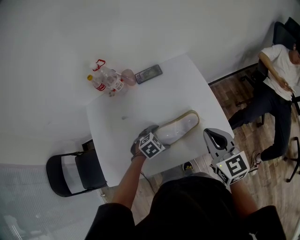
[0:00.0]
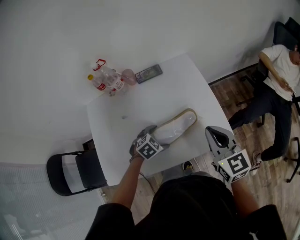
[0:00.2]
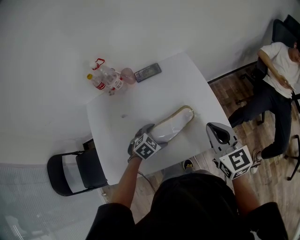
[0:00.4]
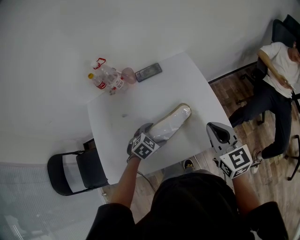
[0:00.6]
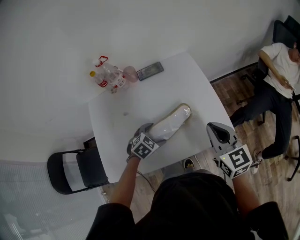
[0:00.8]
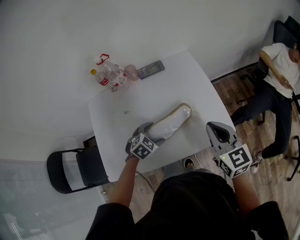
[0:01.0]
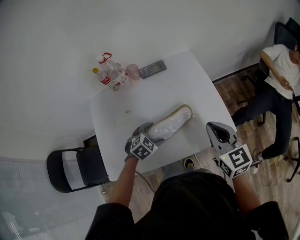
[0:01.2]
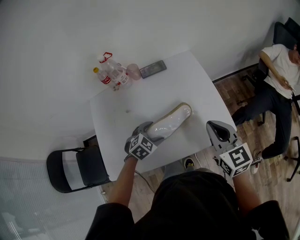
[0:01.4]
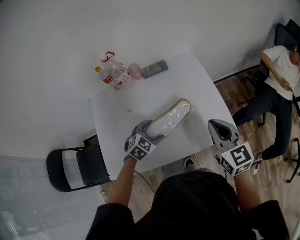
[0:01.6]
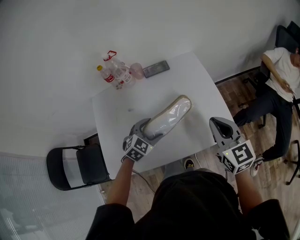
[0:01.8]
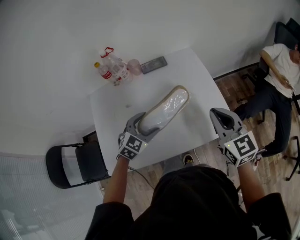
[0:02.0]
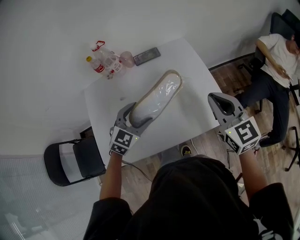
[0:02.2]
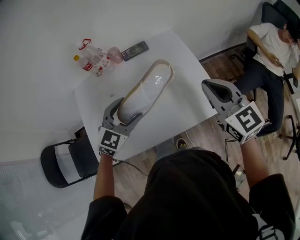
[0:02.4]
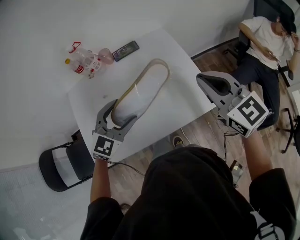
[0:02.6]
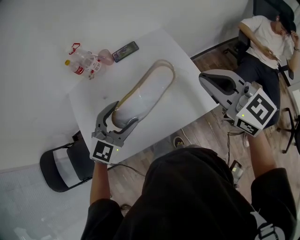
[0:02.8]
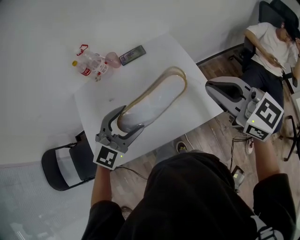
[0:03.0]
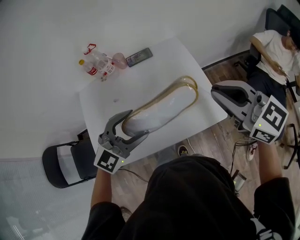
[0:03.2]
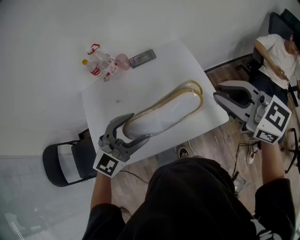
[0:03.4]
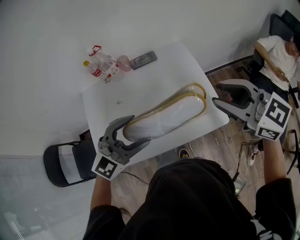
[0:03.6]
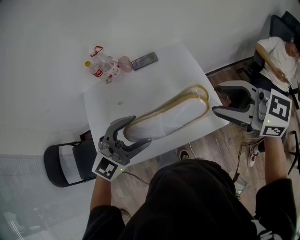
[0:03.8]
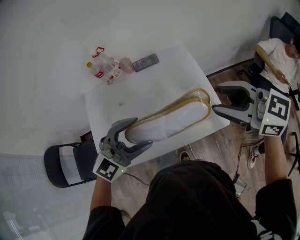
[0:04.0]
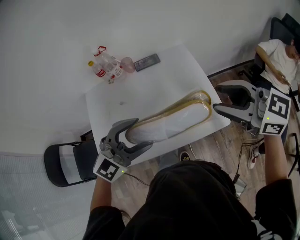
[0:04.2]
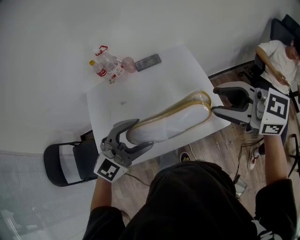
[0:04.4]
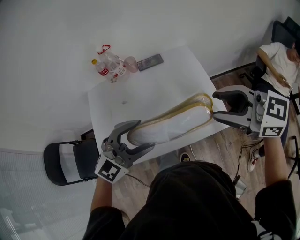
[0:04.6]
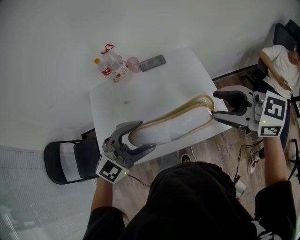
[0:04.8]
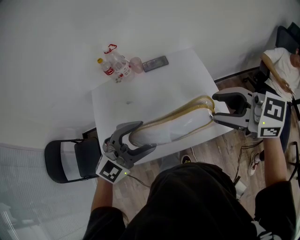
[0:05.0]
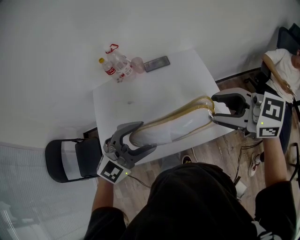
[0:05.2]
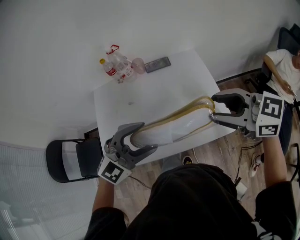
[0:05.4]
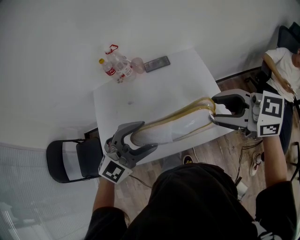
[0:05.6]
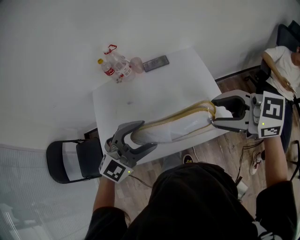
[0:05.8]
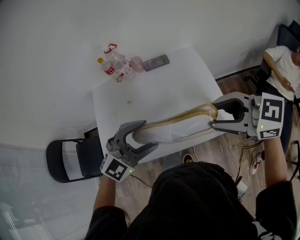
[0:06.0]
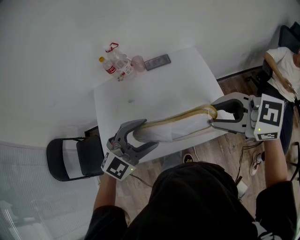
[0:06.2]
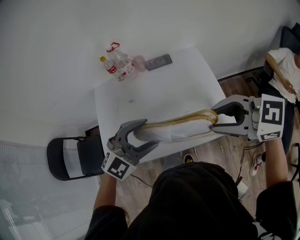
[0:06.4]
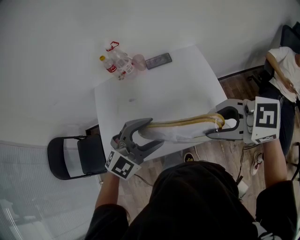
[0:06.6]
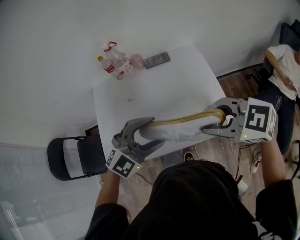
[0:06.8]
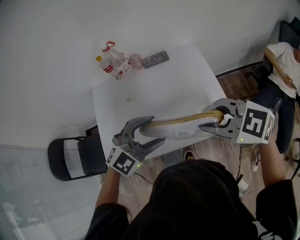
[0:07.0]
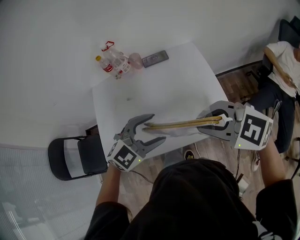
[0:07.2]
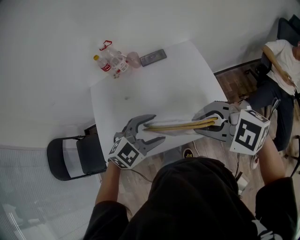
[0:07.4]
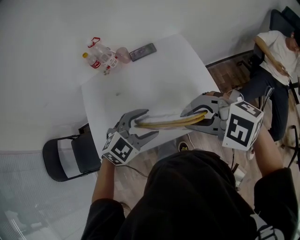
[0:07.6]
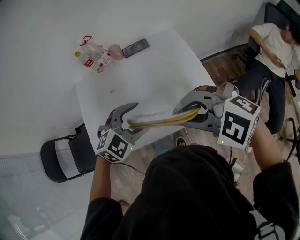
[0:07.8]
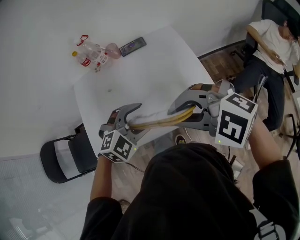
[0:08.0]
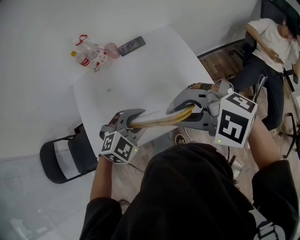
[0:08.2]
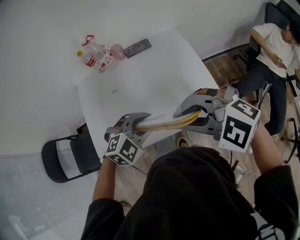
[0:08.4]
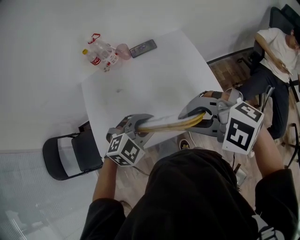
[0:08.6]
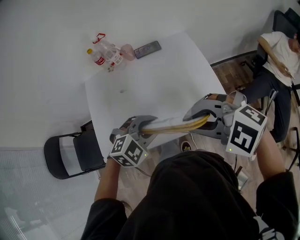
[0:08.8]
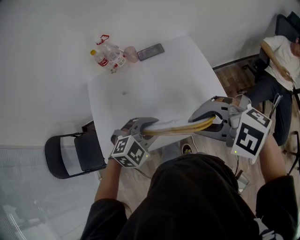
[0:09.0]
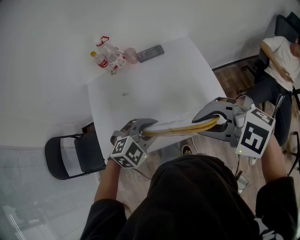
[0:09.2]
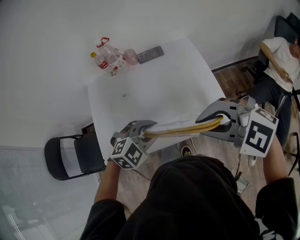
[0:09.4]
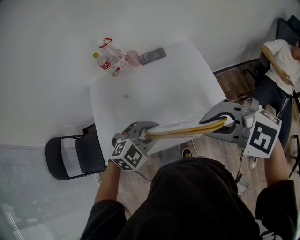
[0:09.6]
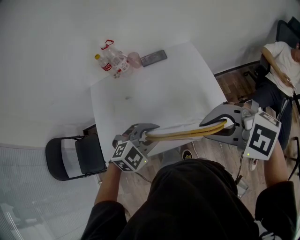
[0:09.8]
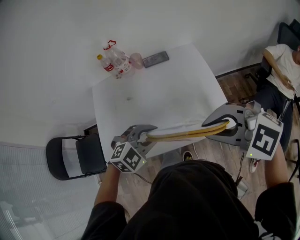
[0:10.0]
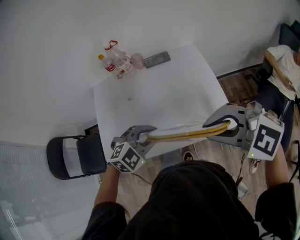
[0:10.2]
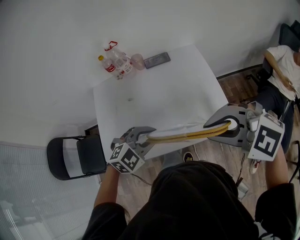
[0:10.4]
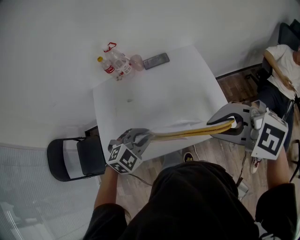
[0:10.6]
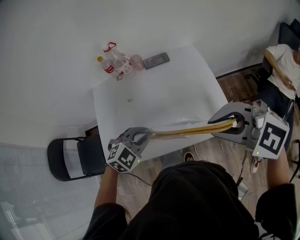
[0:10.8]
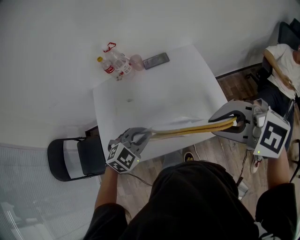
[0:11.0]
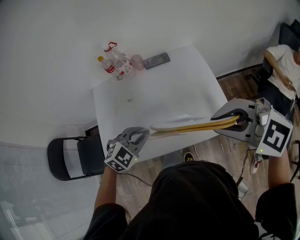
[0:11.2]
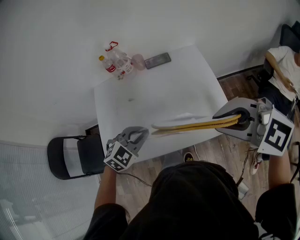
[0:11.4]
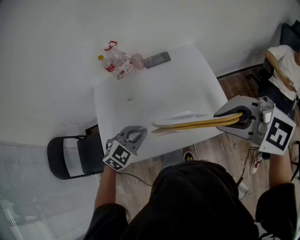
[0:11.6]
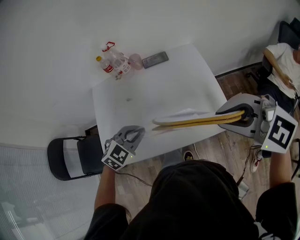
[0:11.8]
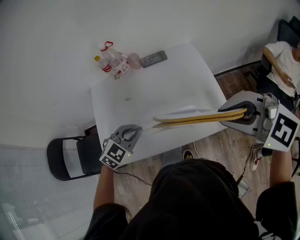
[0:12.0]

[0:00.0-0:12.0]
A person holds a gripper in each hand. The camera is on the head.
0:00.0 to 0:01.6: The left gripper shifts approximately 10 cm upward and to the left.
0:01.6 to 0:03.0: The right gripper goes approximately 10 cm upward, and swivels approximately 20 degrees. The left gripper travels upward by about 20 cm, and turns by roughly 30 degrees.
0:03.0 to 0:04.4: The left gripper goes about 5 cm backward, while the right gripper opens up.
0:04.4 to 0:06.0: The grippers make only small movements.
0:06.0 to 0:07.6: The left gripper is displaced downward by some 5 cm, and swivels about 20 degrees. The right gripper shifts by some 5 cm, swivels roughly 40 degrees, and closes its fingers.
0:07.6 to 0:09.0: The left gripper closes.
0:09.0 to 0:10.4: There are only small adjustments of the grippers.
0:10.4 to 0:12.0: The right gripper ends up about 5 cm from where it was. The left gripper ends up roughly 5 cm from where it was.

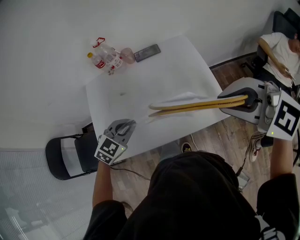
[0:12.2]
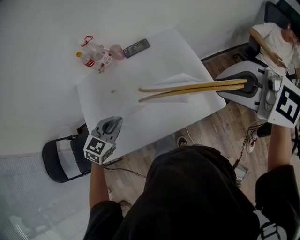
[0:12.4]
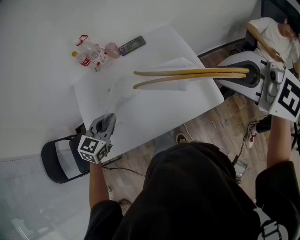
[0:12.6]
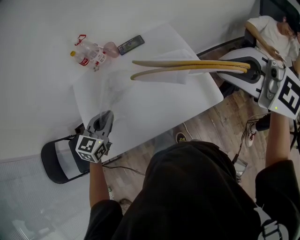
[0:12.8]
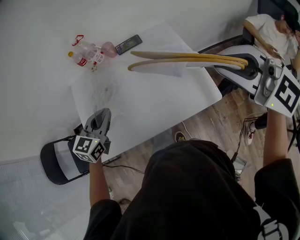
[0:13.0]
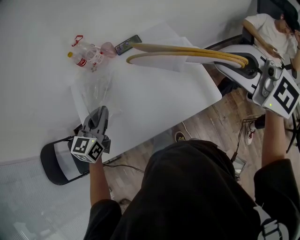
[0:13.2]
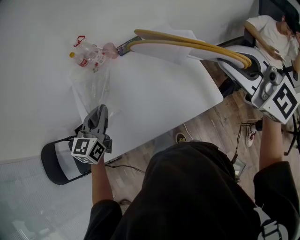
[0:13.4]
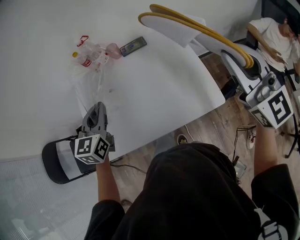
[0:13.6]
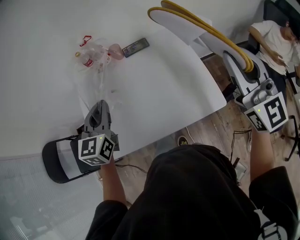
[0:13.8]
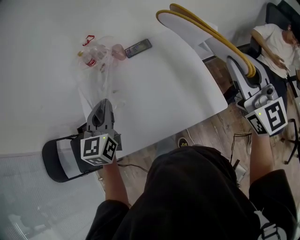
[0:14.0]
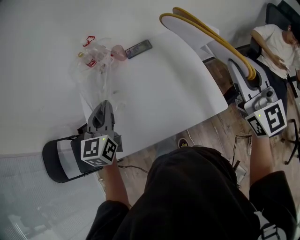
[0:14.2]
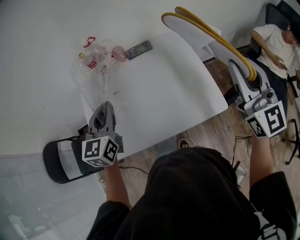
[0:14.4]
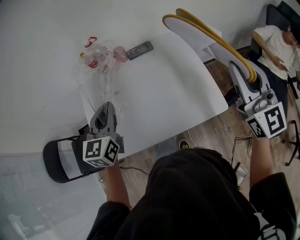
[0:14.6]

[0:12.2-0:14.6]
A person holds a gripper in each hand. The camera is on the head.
0:12.2 to 0:13.4: The left gripper travels upward and forward by roughly 10 cm, and swivels approximately 40 degrees. Meanwhile the right gripper travels to the right by about 5 cm, and changes its angle by some 40 degrees.
0:13.4 to 0:14.6: The right gripper swivels approximately 30 degrees.

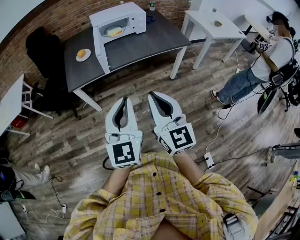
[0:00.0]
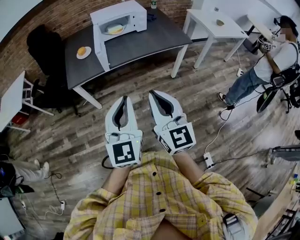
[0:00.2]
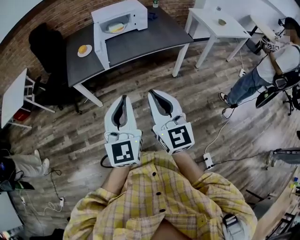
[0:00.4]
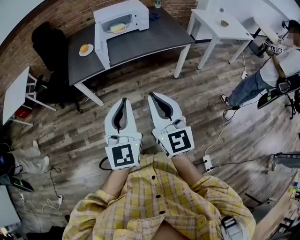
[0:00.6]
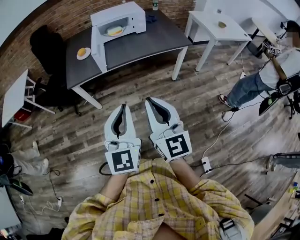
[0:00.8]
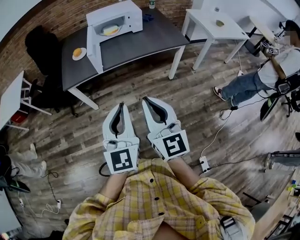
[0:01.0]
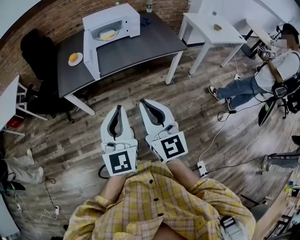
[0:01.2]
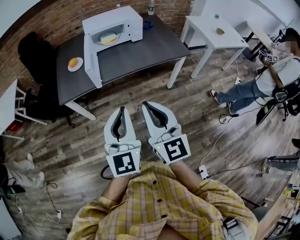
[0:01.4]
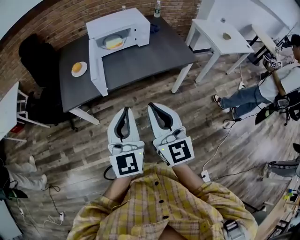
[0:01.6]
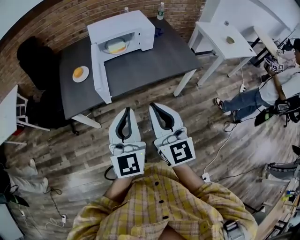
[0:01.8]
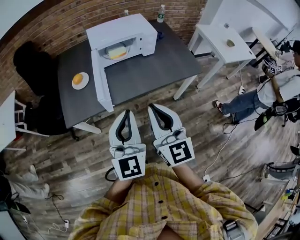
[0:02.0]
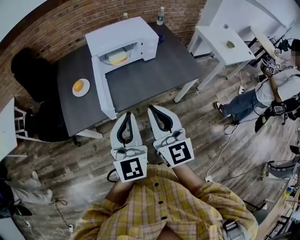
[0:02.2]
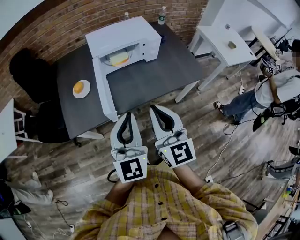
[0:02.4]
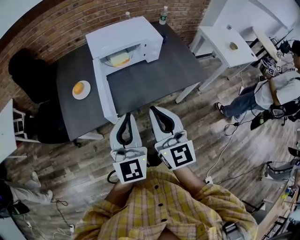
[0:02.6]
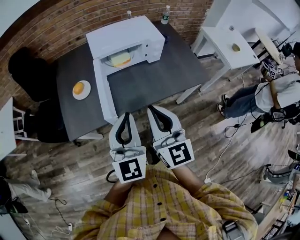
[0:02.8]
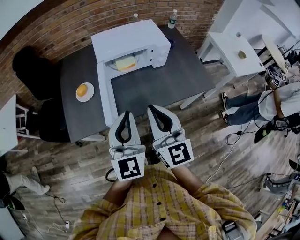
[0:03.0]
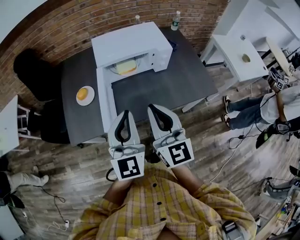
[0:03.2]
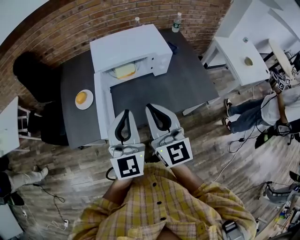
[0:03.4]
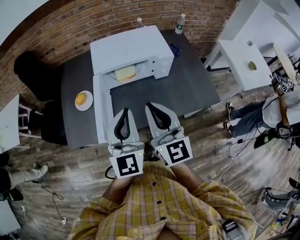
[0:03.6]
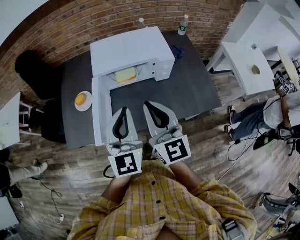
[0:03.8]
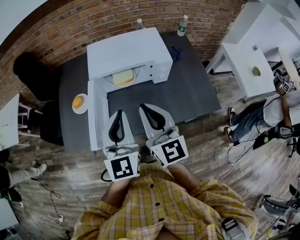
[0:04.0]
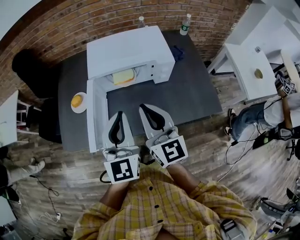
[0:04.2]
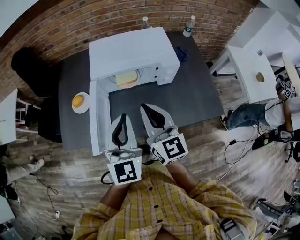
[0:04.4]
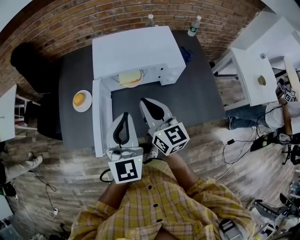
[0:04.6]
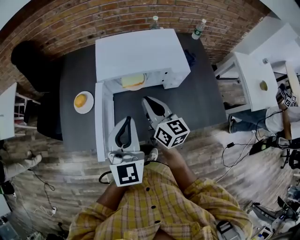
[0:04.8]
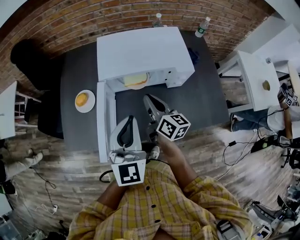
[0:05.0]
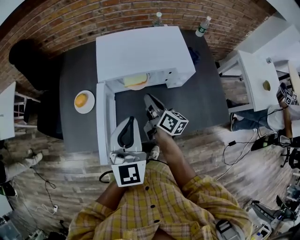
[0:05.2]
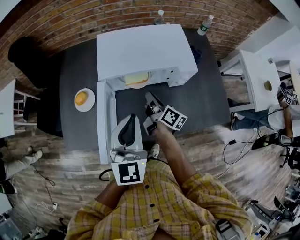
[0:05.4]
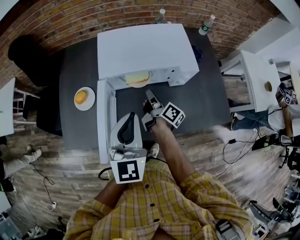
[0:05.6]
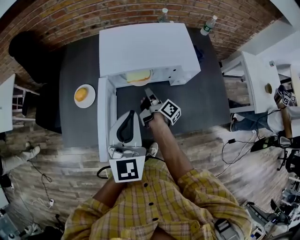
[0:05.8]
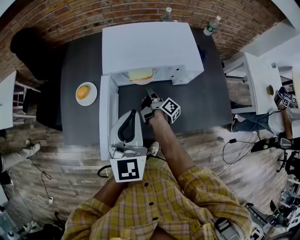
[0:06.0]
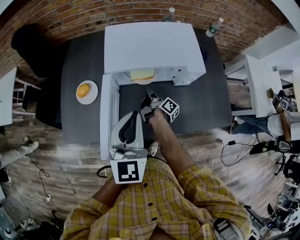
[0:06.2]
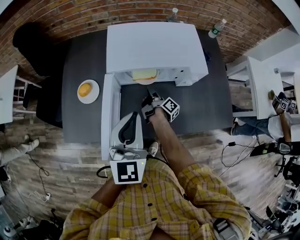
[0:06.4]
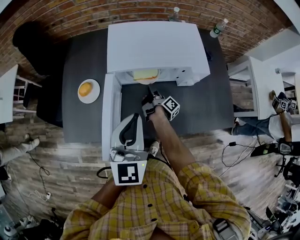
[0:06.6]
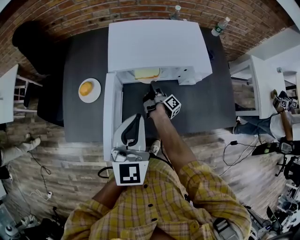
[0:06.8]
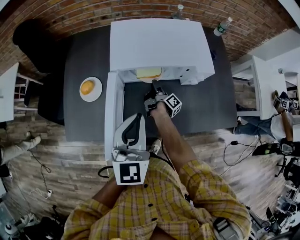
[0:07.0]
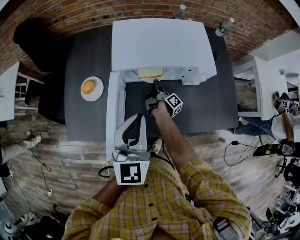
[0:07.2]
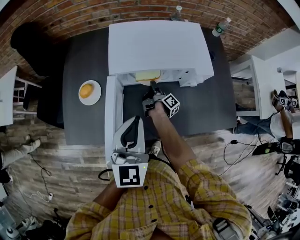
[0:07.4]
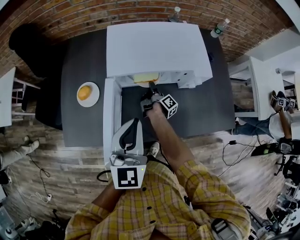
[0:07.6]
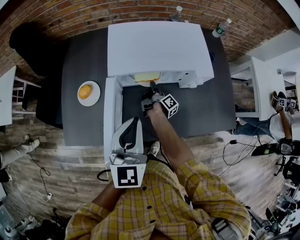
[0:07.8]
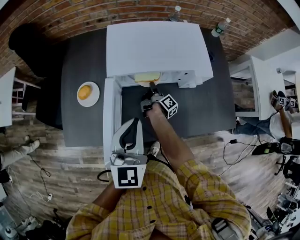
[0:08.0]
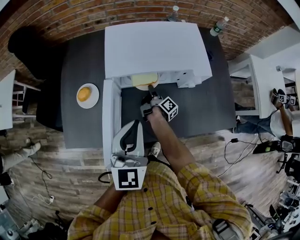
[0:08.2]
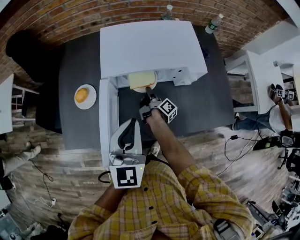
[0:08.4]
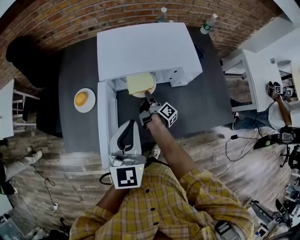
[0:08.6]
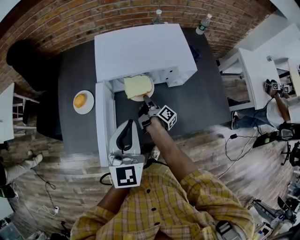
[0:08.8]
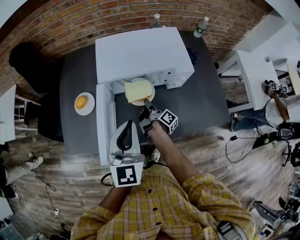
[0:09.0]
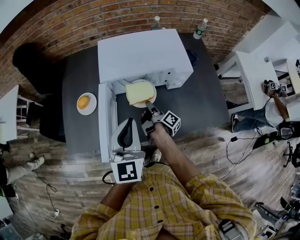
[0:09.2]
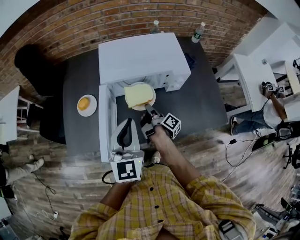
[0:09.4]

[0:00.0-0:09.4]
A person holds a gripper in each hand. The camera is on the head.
0:00.0 to 0:01.6: Both grippers move forward, some 15 cm.
0:01.6 to 0:03.2: Both grippers move forward, approximately 30 cm.
0:03.2 to 0:04.8: The left gripper heads forward, covering roughly 15 cm. The right gripper is displaced forward and downward by some 25 cm, and changes its angle by roughly 30 degrees.
0:04.8 to 0:06.2: The right gripper heads downward and forward, covering about 25 cm, and twists some 60 degrees clockwise, seen from behind.
0:06.2 to 0:07.8: The right gripper shifts about 5 cm forward.
0:07.8 to 0:09.4: The right gripper heads backward and upward, covering about 20 cm. The left gripper moves roughly 5 cm.
